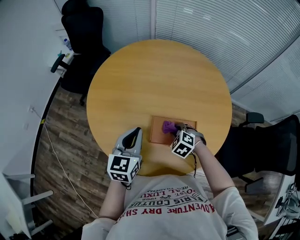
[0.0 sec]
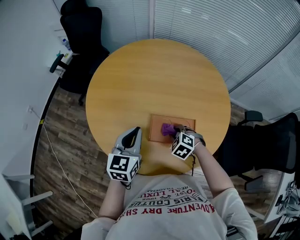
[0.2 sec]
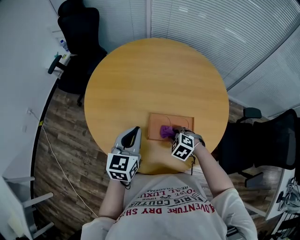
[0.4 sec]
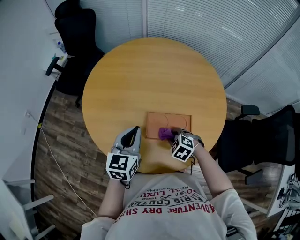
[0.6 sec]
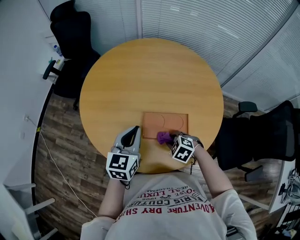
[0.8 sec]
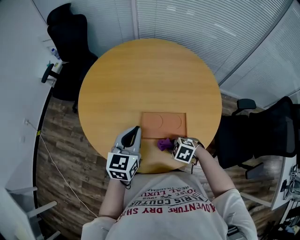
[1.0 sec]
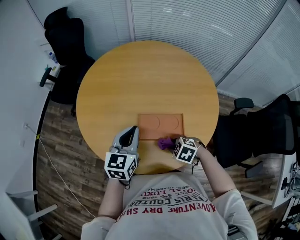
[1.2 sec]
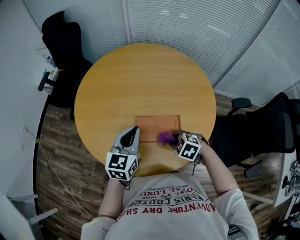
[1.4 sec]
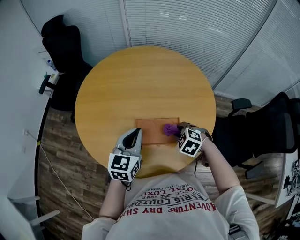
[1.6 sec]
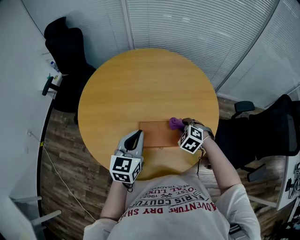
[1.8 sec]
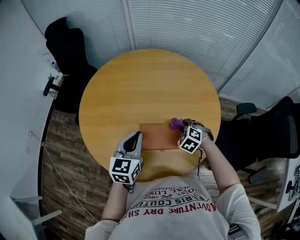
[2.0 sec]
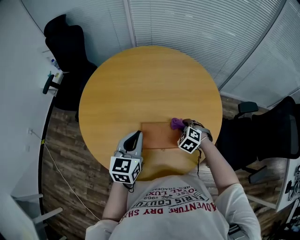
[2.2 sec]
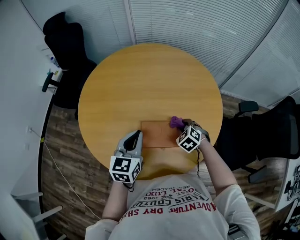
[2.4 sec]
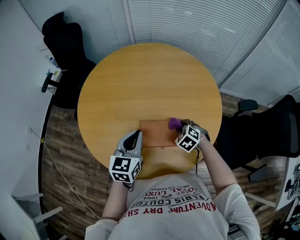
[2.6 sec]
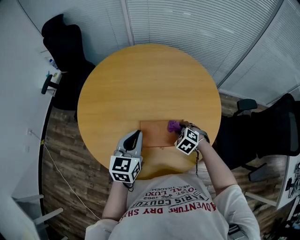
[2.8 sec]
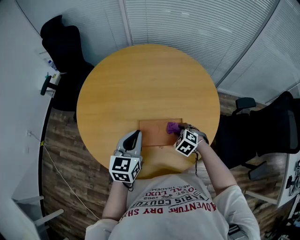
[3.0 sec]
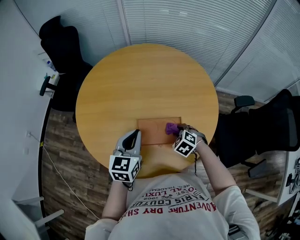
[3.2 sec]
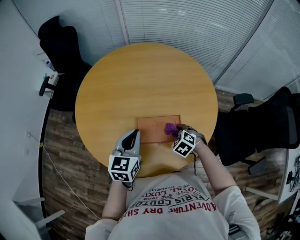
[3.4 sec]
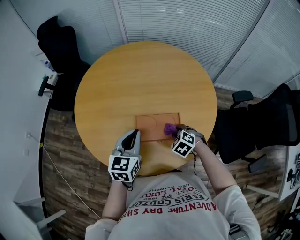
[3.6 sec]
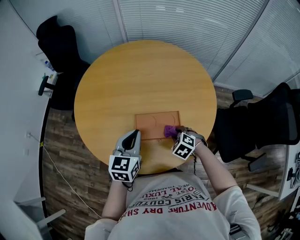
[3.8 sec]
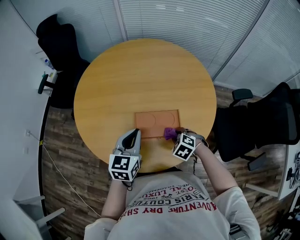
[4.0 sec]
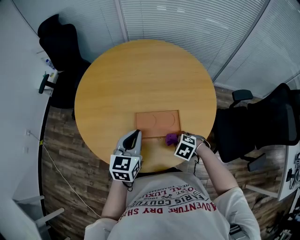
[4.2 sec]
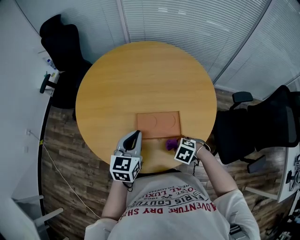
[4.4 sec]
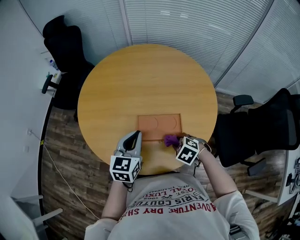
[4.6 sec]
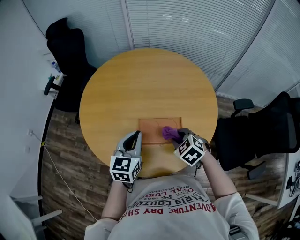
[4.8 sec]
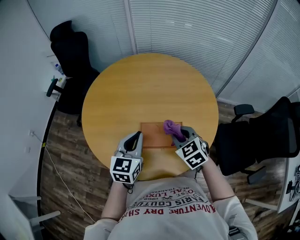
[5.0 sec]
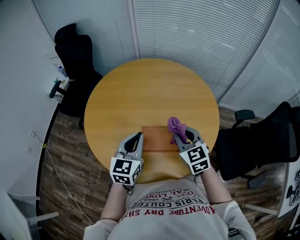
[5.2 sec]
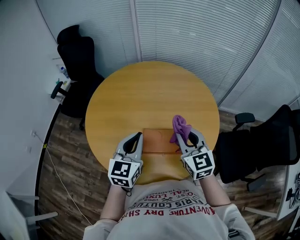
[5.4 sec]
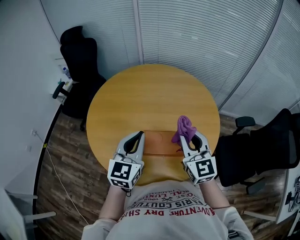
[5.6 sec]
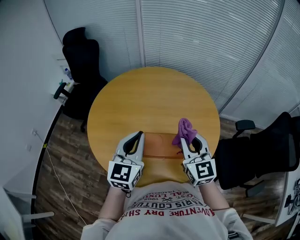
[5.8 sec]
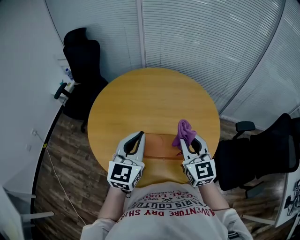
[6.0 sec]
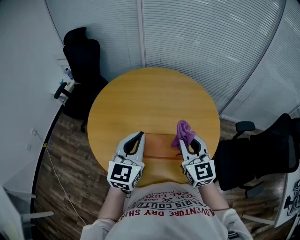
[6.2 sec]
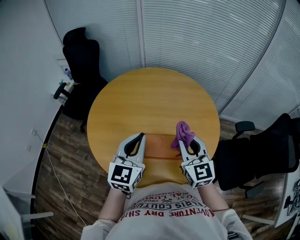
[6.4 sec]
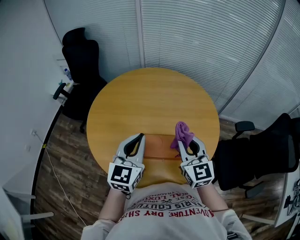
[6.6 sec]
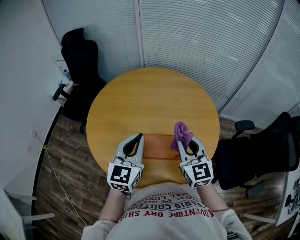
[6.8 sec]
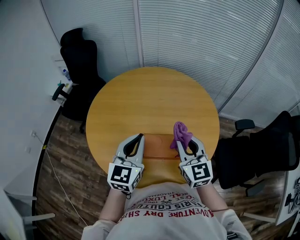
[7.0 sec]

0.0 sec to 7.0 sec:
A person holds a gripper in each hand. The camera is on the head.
0.0 sec to 1.4 sec: The right gripper heads backward, covering roughly 10 cm, while the left gripper shifts roughly 5 cm to the right.
1.4 sec to 2.8 sec: The right gripper heads forward, covering about 10 cm.
2.8 sec to 4.2 sec: The right gripper ends up some 10 cm from where it was.
4.2 sec to 5.6 sec: The left gripper travels upward by about 10 cm. The right gripper heads upward, covering approximately 30 cm, and angles its fingers upward, by about 70 degrees.
5.6 sec to 7.0 sec: The grippers move only a little.

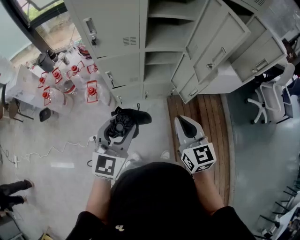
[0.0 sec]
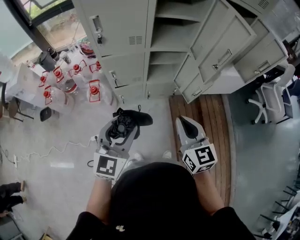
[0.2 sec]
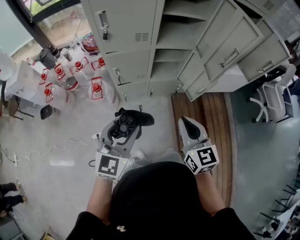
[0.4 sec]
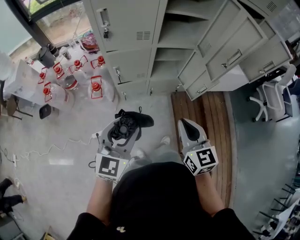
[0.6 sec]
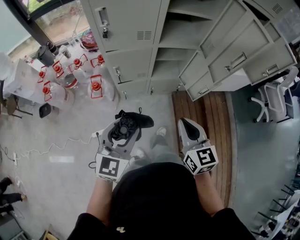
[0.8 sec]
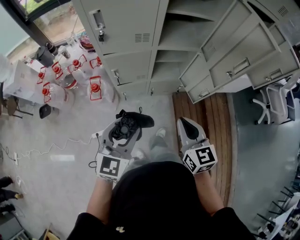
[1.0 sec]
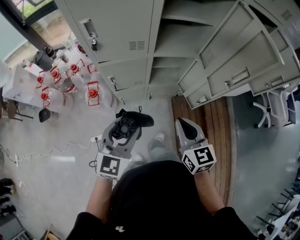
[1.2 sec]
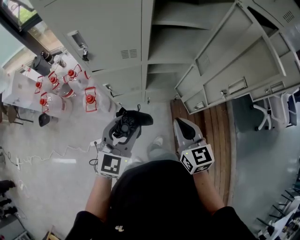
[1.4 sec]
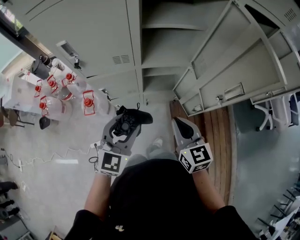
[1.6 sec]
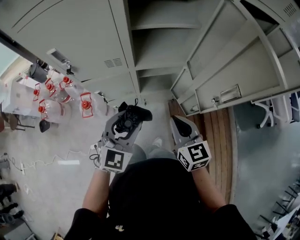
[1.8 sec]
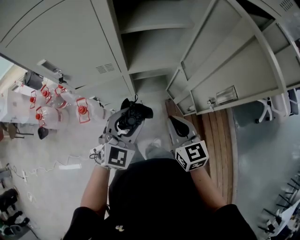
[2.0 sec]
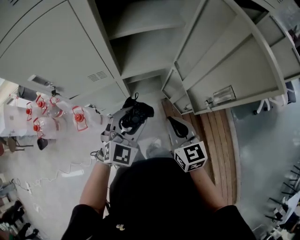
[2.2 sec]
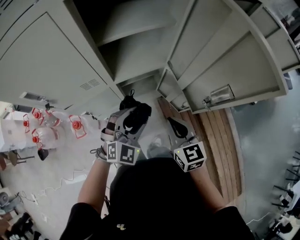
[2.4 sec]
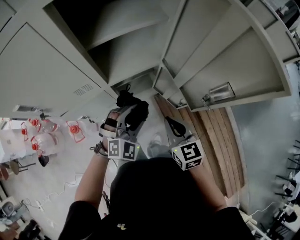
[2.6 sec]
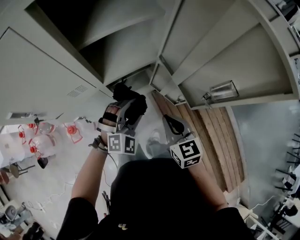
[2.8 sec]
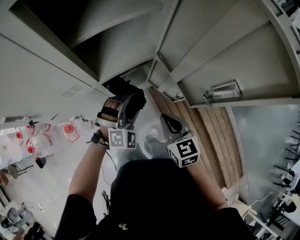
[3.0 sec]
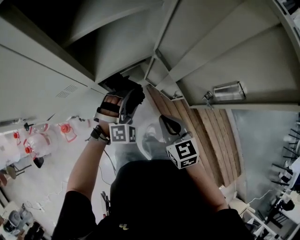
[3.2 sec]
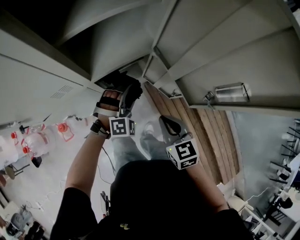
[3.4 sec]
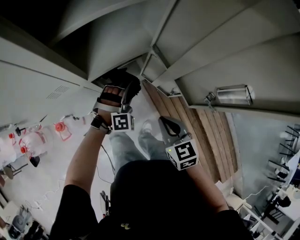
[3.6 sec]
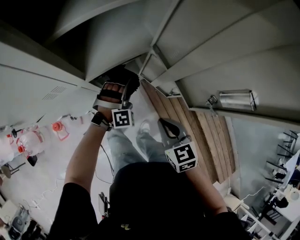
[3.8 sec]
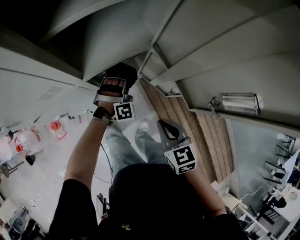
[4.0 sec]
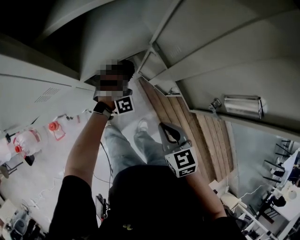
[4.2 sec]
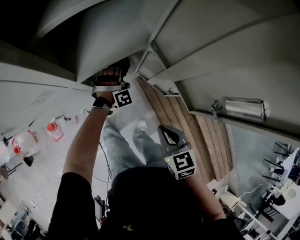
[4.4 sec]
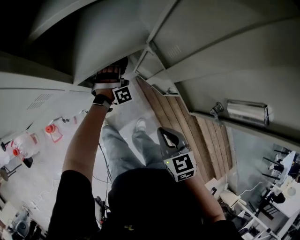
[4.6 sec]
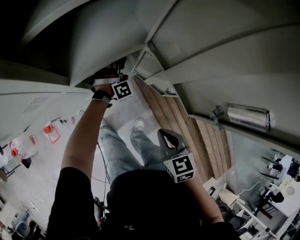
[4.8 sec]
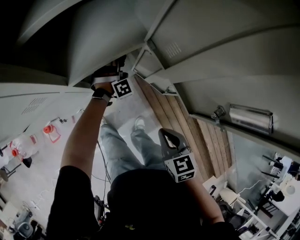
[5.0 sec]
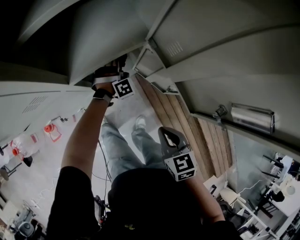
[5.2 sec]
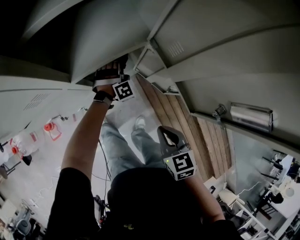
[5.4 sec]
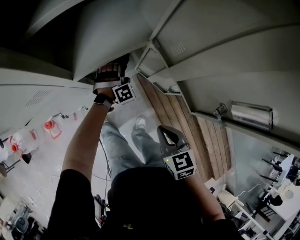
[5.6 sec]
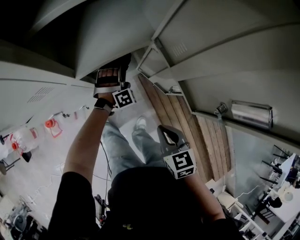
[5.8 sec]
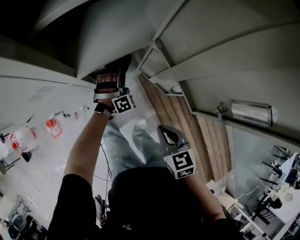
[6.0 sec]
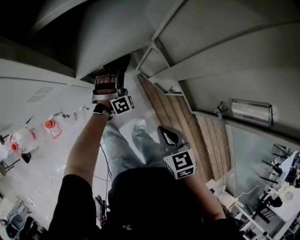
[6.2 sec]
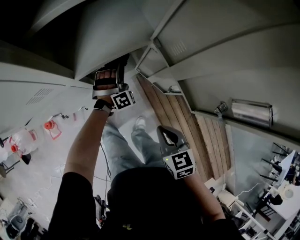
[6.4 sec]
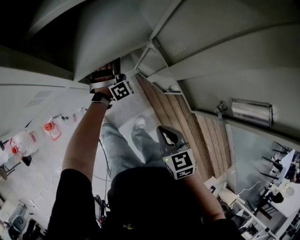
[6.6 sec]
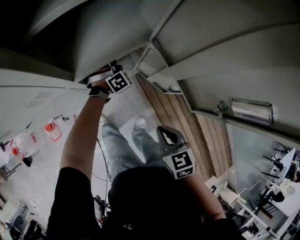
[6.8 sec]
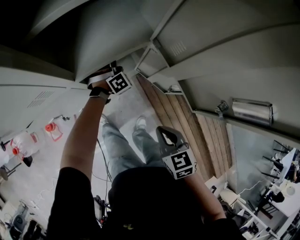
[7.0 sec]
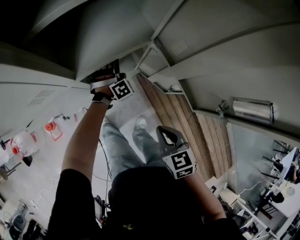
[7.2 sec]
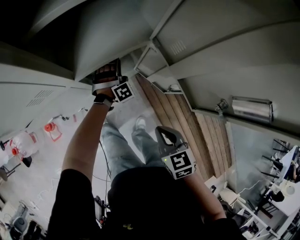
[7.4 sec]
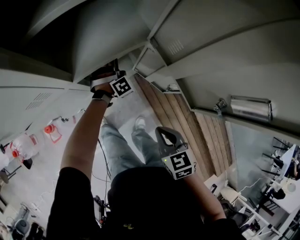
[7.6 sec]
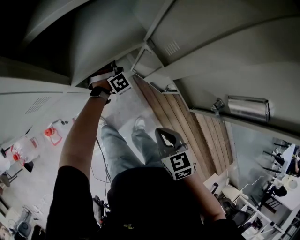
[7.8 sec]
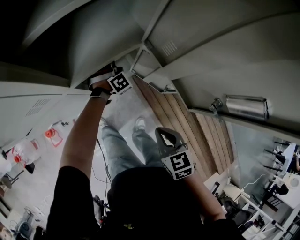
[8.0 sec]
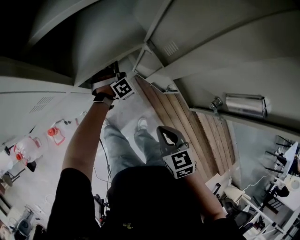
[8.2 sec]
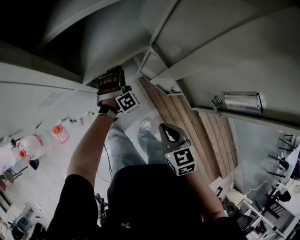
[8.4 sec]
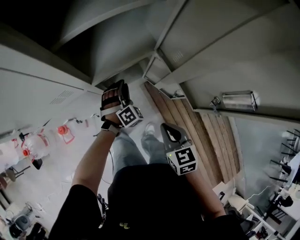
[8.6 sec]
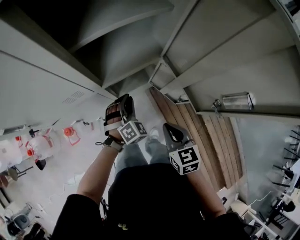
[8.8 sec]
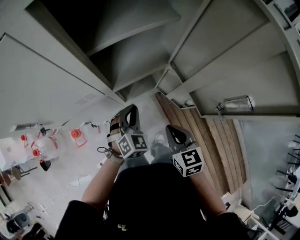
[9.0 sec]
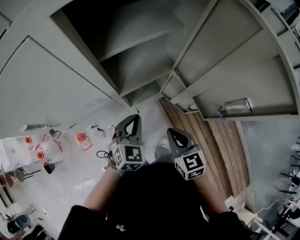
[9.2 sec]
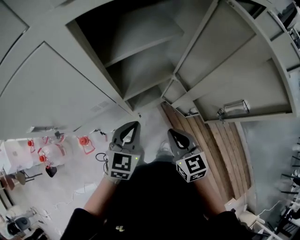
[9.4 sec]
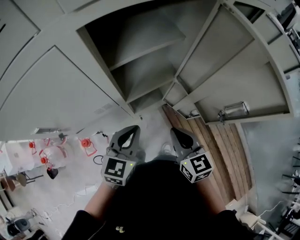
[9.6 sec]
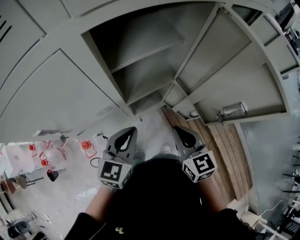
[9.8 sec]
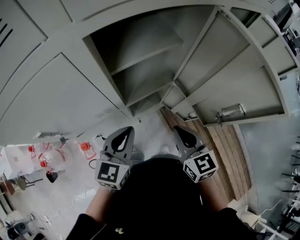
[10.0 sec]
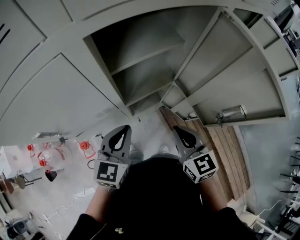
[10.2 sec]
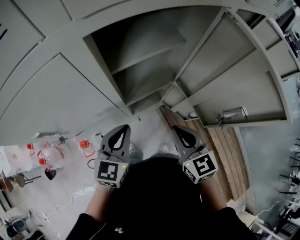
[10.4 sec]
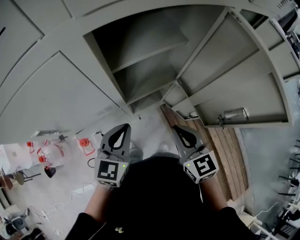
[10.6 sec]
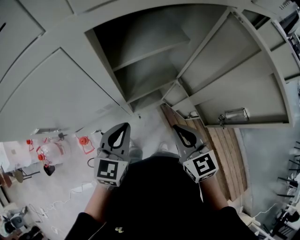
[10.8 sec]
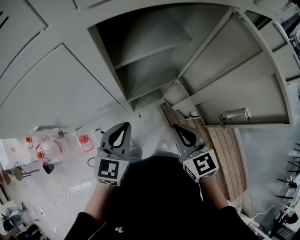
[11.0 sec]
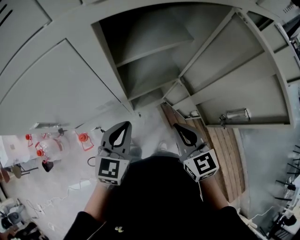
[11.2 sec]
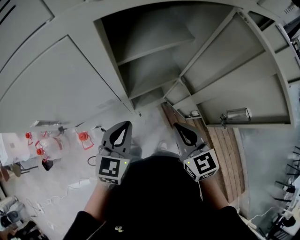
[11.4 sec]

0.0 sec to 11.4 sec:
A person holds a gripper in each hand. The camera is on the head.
0.0 sec to 1.4 sec: The grippers both shift forward by approximately 15 cm.
1.4 sec to 2.8 sec: The right gripper moves forward, downward and to the right, approximately 15 cm. Meanwhile the left gripper is displaced forward, to the right and downward by about 25 cm, and rolls clockwise, seen from behind, by some 50 degrees.
2.8 sec to 4.2 sec: The left gripper is displaced downward and forward by about 20 cm, and turns by some 40 degrees; the right gripper goes approximately 10 cm downward.
4.2 sec to 5.6 sec: The left gripper shifts by approximately 5 cm.
5.6 sec to 7.2 sec: The left gripper closes up.
7.2 sec to 8.6 sec: The left gripper heads backward, covering roughly 10 cm.
8.6 sec to 10.0 sec: The left gripper goes approximately 30 cm upward, and twists some 60 degrees counterclockwise, seen from behind; the right gripper shifts about 15 cm upward.
10.0 sec to 11.4 sec: There are only small adjustments of the grippers.

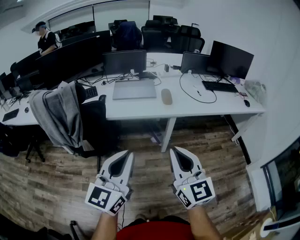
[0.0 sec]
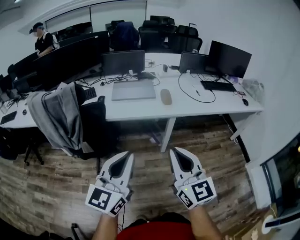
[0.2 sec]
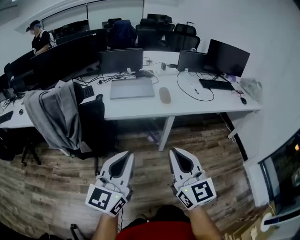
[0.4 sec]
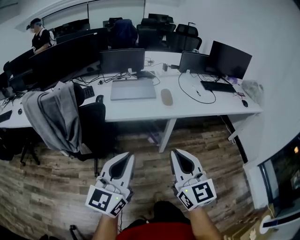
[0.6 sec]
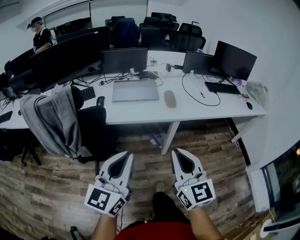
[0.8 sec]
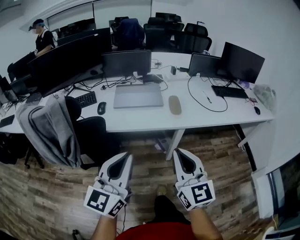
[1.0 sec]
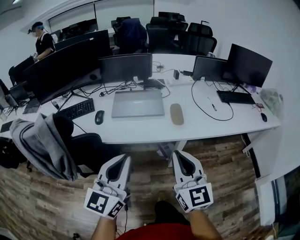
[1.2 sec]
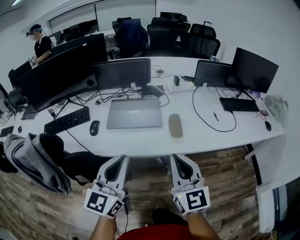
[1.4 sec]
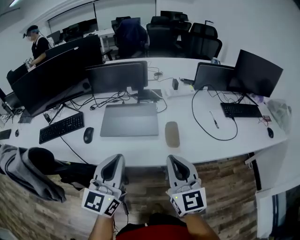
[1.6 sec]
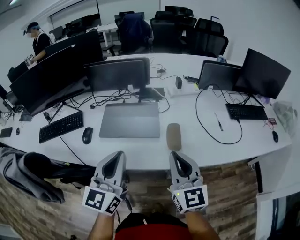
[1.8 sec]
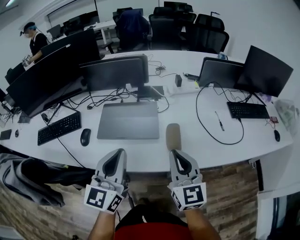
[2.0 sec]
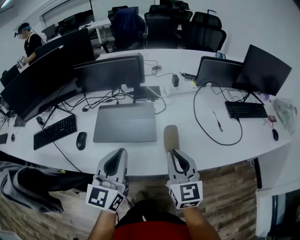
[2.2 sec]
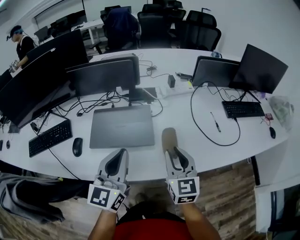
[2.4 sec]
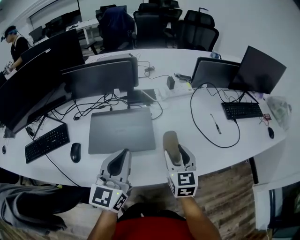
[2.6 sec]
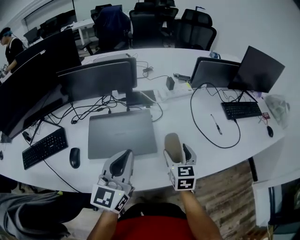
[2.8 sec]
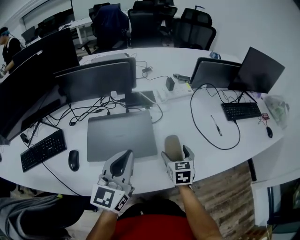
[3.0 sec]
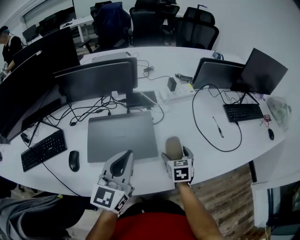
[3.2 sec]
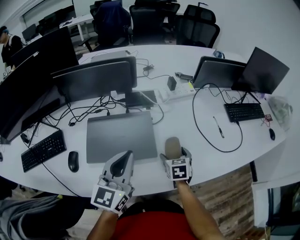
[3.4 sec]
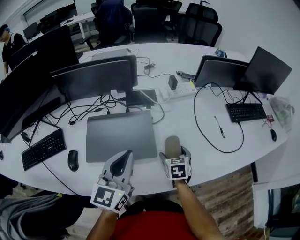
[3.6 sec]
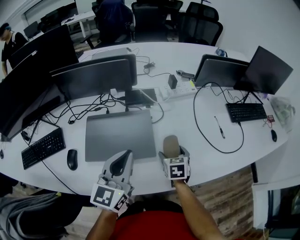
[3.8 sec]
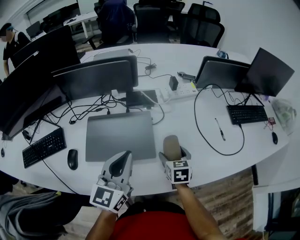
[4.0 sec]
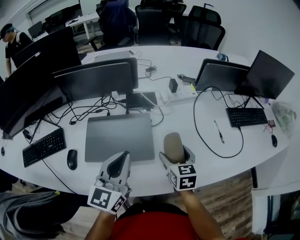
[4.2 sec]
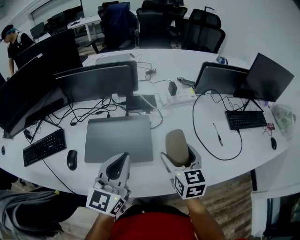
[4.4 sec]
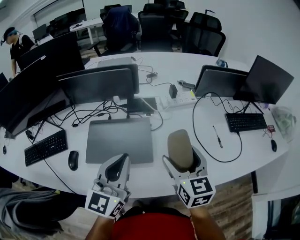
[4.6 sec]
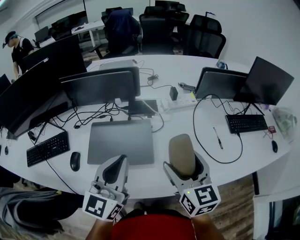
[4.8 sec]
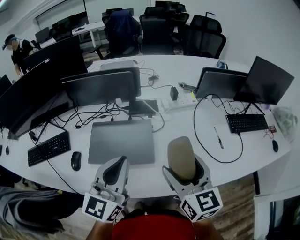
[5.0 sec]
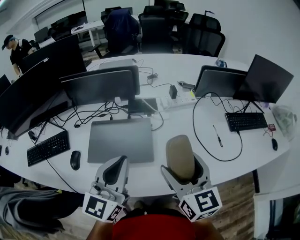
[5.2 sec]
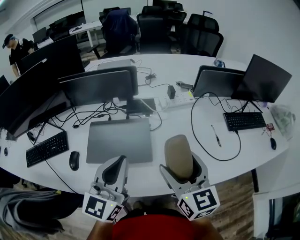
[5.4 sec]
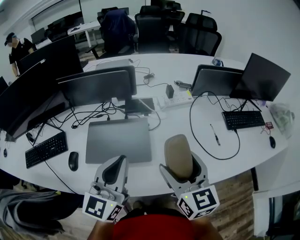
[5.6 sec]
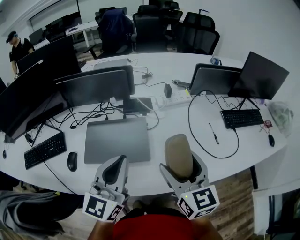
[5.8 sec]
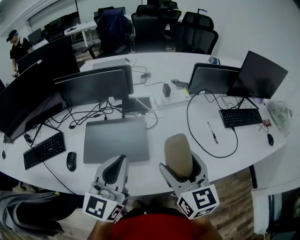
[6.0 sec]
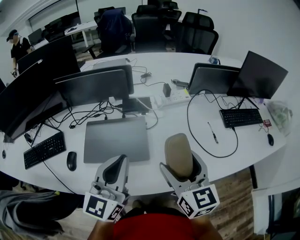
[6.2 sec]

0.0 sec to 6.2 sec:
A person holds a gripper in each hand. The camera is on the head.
0.0 sec to 1.6 sec: The grippers both shift forward by roughly 35 cm.
1.6 sec to 3.2 sec: The left gripper goes approximately 20 cm forward; the right gripper heads downward and forward, covering roughly 35 cm, angles its fingers downward, by about 40 degrees, and opens up.
3.2 sec to 4.6 sec: The right gripper heads upward, covering some 20 cm, and turns by some 30 degrees.
4.6 sec to 6.2 sec: The right gripper moves backward, some 5 cm.
